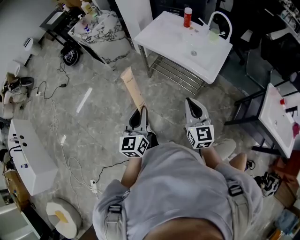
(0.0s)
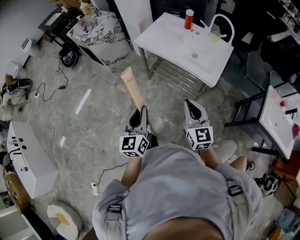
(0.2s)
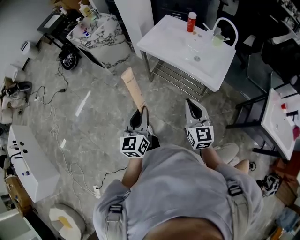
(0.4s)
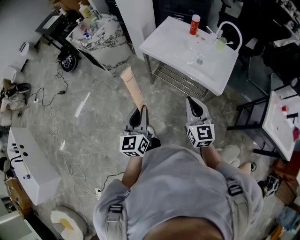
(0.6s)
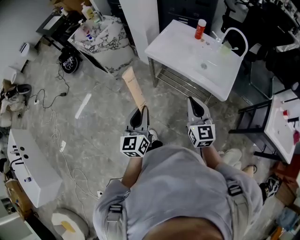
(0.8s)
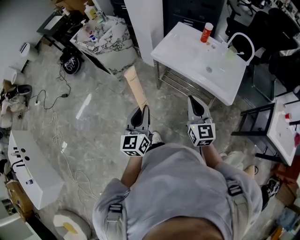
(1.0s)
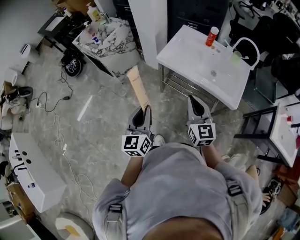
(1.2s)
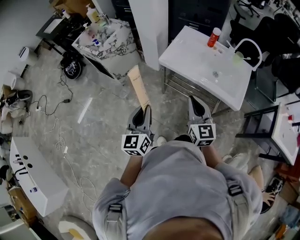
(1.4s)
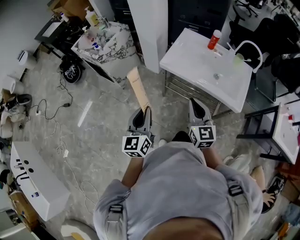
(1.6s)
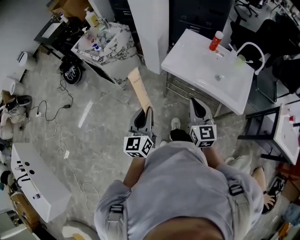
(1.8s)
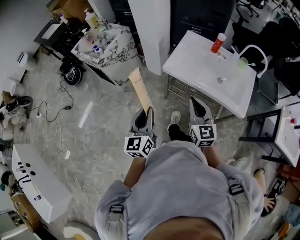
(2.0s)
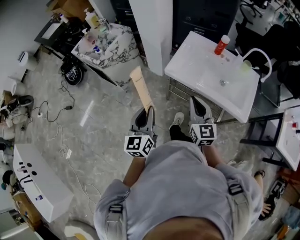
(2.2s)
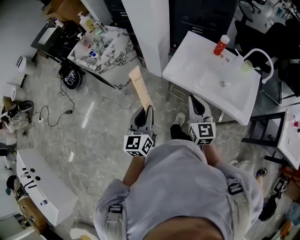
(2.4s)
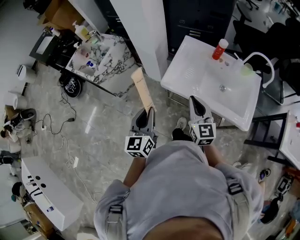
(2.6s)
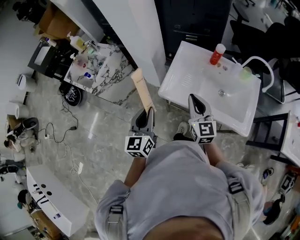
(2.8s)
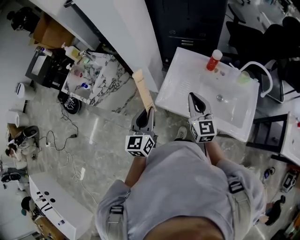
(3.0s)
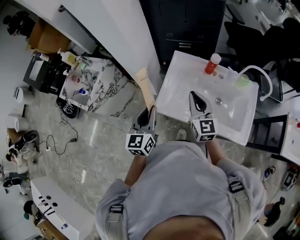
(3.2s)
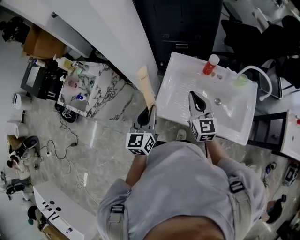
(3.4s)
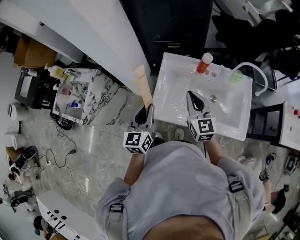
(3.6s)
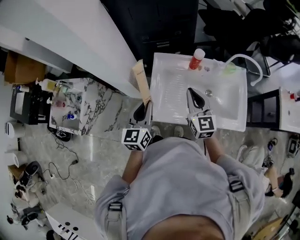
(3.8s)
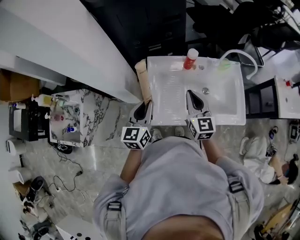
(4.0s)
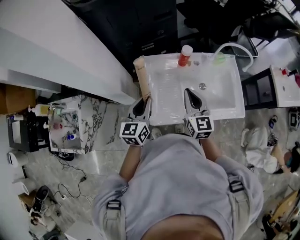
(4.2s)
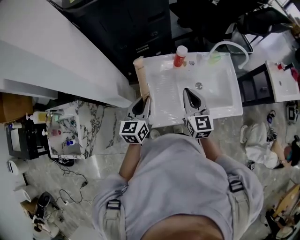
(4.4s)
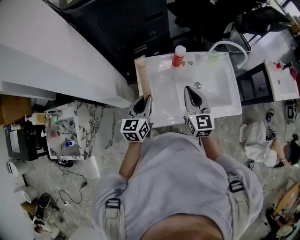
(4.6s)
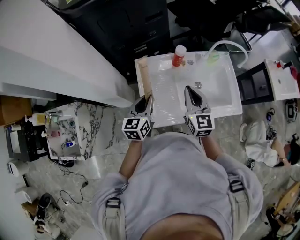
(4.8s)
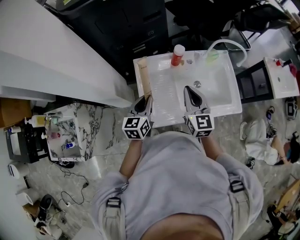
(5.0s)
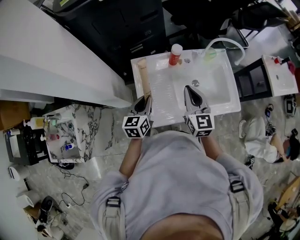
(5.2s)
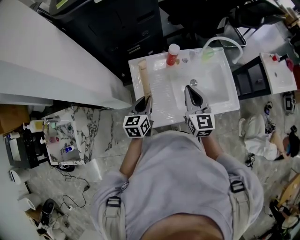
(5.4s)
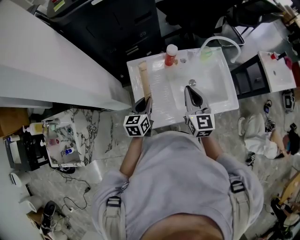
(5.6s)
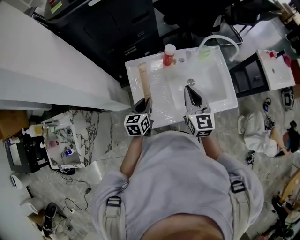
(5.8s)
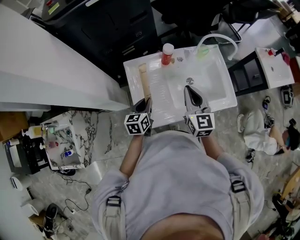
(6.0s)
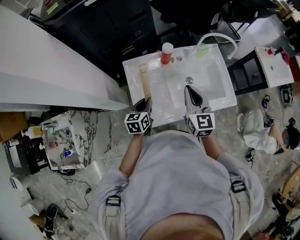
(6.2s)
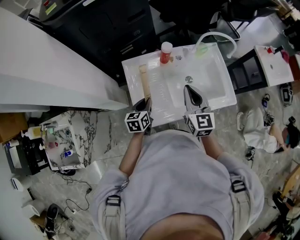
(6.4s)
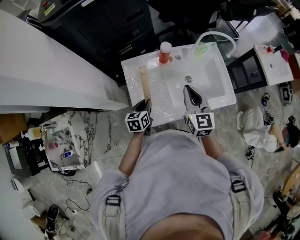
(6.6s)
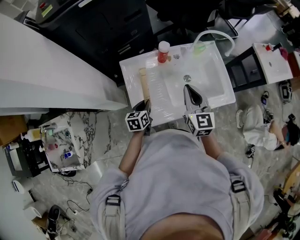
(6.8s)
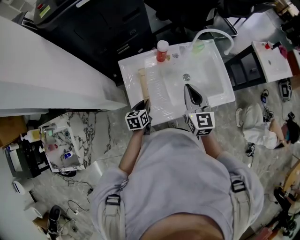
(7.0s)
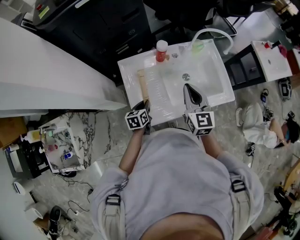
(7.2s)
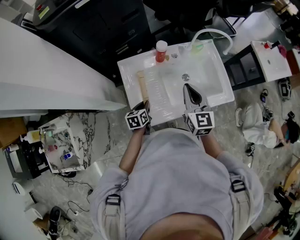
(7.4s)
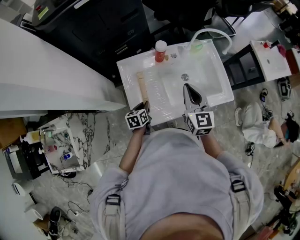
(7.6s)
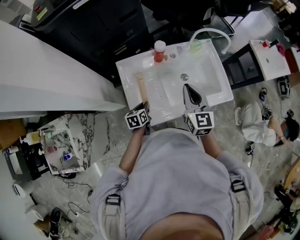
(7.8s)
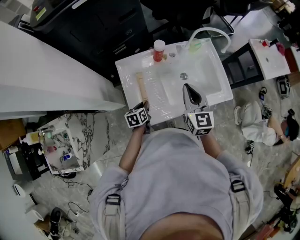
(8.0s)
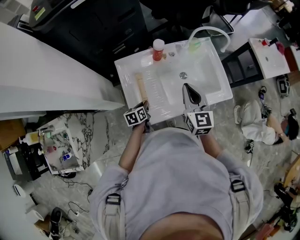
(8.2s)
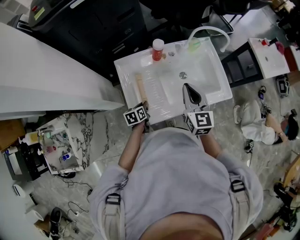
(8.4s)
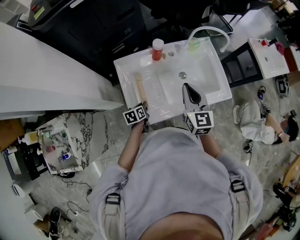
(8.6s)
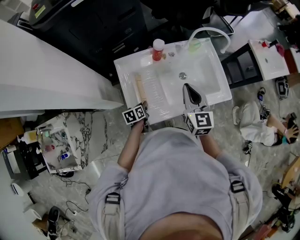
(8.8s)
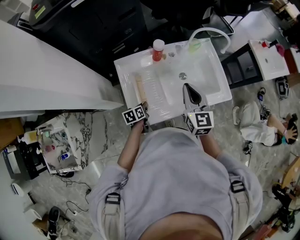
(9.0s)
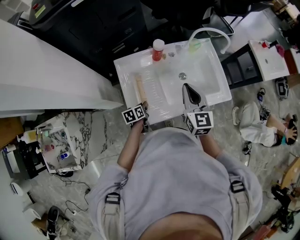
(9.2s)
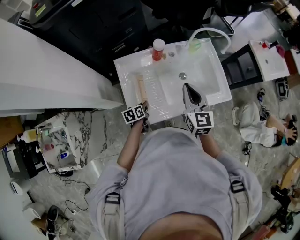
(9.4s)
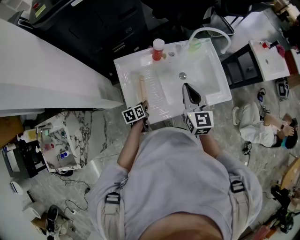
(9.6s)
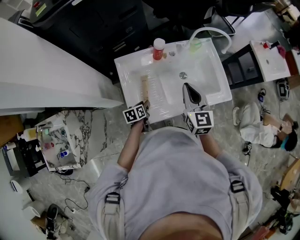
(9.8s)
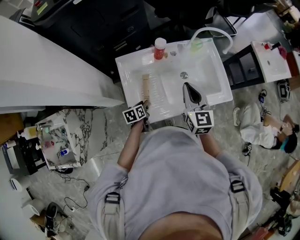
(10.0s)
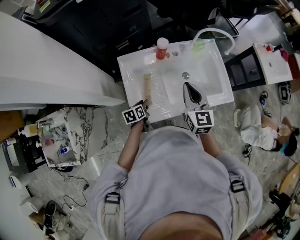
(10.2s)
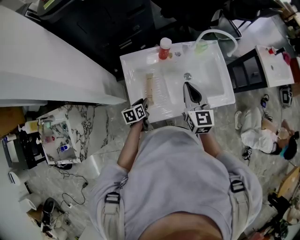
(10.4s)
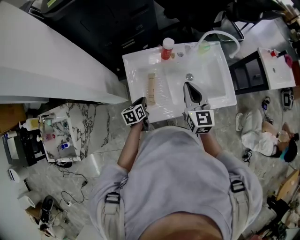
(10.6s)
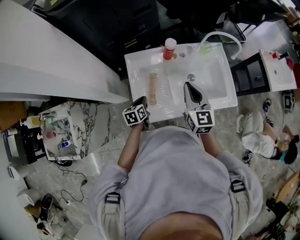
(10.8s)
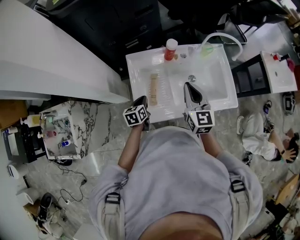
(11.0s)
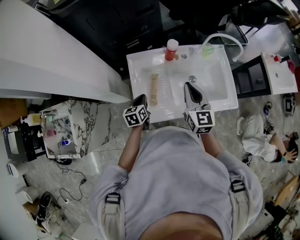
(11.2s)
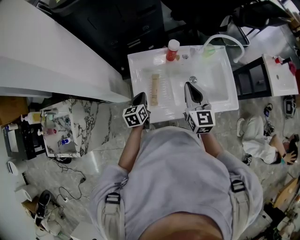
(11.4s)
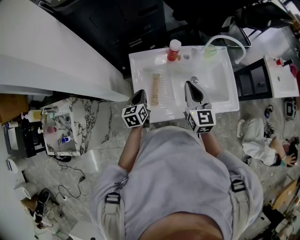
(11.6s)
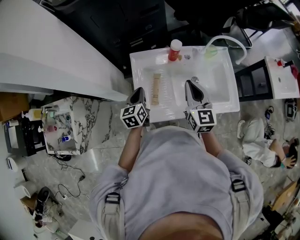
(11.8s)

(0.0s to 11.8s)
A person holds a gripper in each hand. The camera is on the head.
0.0s - 1.4s: The grippers both shift forward and to the left by some 30 cm.
1.4s - 3.0s: The grippers both shift forward by roughly 35 cm.
3.0s - 4.4s: The right gripper changes place by some 10 cm, and changes its angle by roughly 30 degrees. Meanwhile the left gripper ends up approximately 20 cm from where it was, and turns by about 30 degrees.
4.4s - 6.0s: The left gripper is displaced downward by roughly 10 cm.
6.0s - 7.4s: The left gripper travels downward by approximately 10 cm.
7.4s - 8.8s: The left gripper is displaced downward by about 5 cm.
8.8s - 10.4s: There are only small adjustments of the grippers.
10.4s - 11.8s: The left gripper shifts about 15 cm upward, turns by approximately 30 degrees, and closes its fingers.

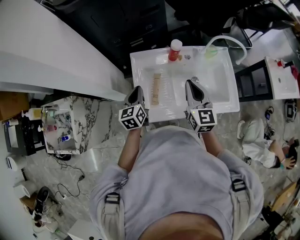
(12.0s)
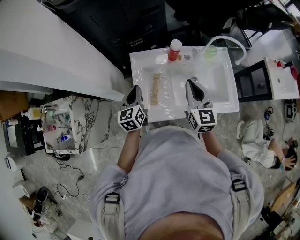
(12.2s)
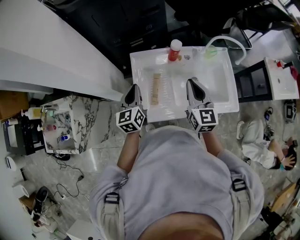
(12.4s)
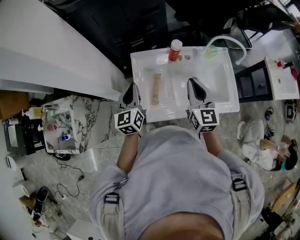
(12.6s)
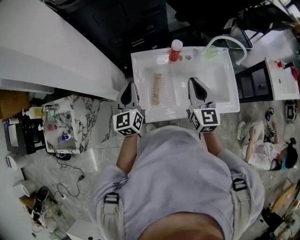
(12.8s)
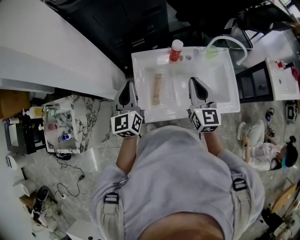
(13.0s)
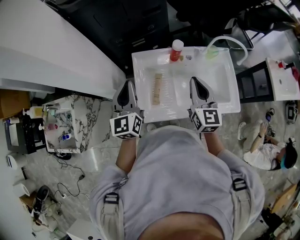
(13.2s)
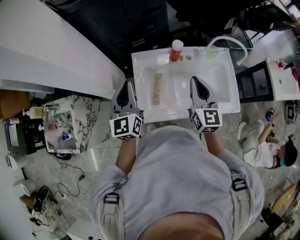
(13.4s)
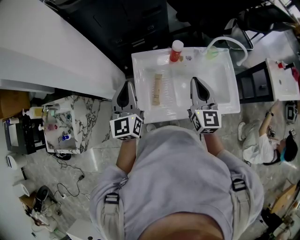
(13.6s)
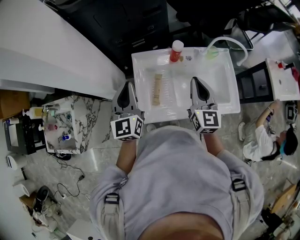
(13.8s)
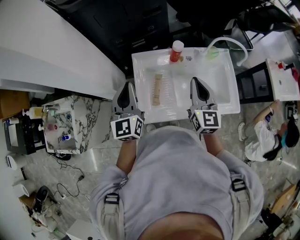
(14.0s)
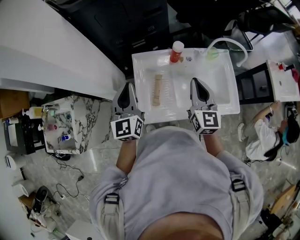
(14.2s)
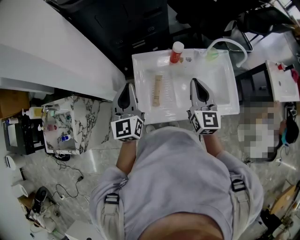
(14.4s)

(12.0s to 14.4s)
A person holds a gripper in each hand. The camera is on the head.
12.0s - 13.2s: The left gripper travels upward by approximately 15 cm, and changes its angle by roughly 20 degrees.
13.2s - 14.4s: Neither gripper changes place.

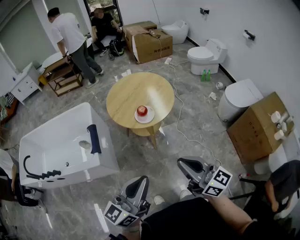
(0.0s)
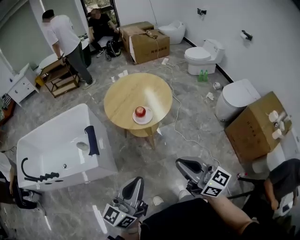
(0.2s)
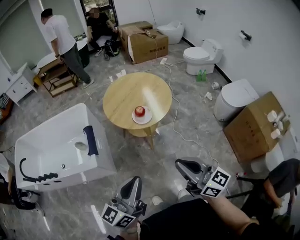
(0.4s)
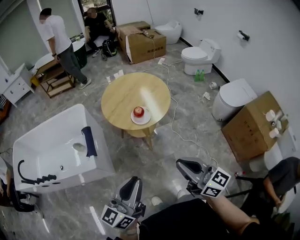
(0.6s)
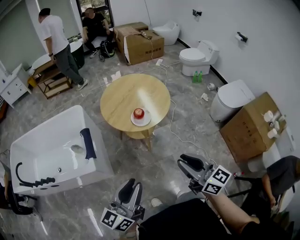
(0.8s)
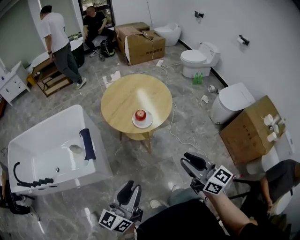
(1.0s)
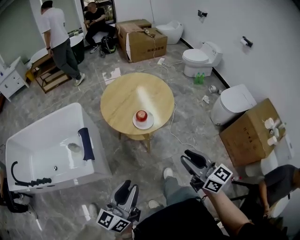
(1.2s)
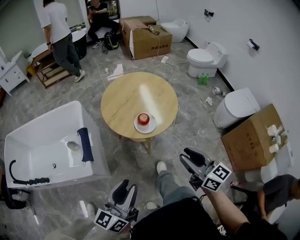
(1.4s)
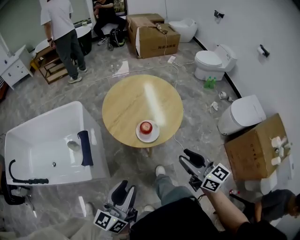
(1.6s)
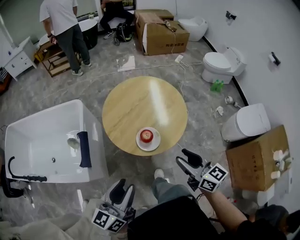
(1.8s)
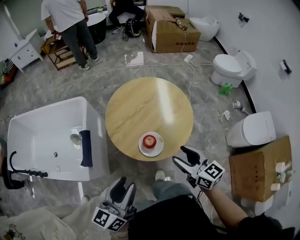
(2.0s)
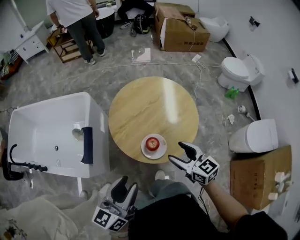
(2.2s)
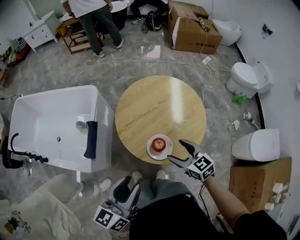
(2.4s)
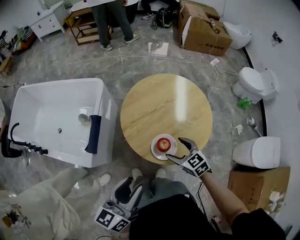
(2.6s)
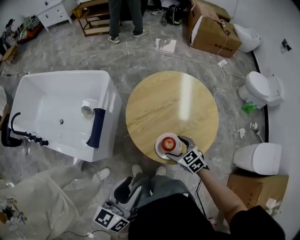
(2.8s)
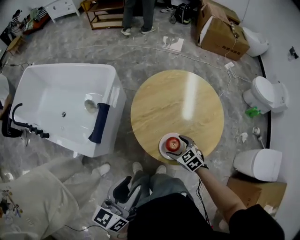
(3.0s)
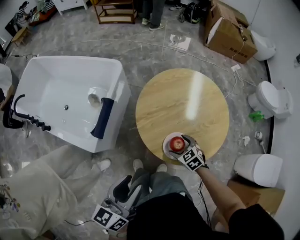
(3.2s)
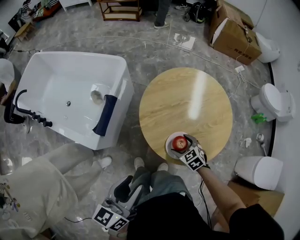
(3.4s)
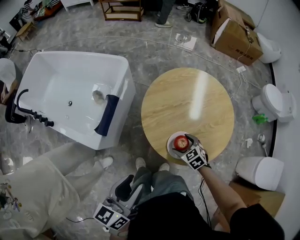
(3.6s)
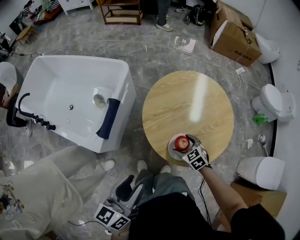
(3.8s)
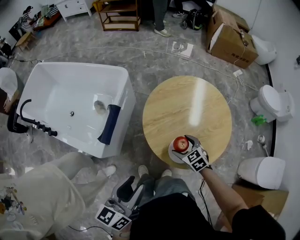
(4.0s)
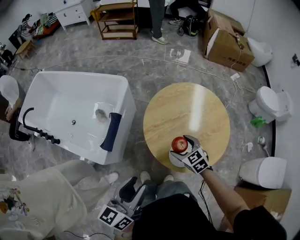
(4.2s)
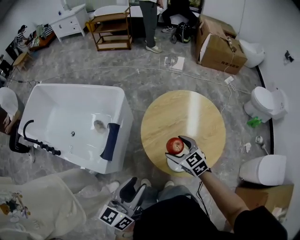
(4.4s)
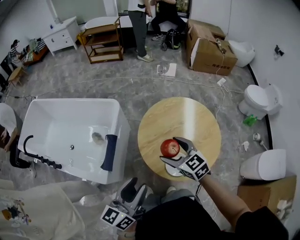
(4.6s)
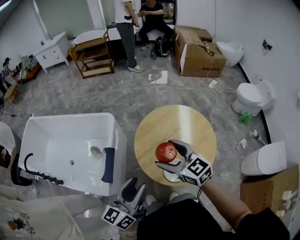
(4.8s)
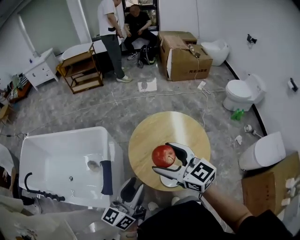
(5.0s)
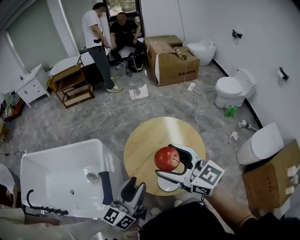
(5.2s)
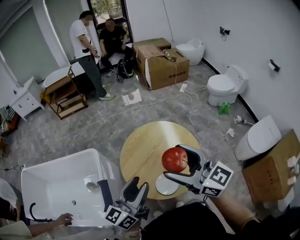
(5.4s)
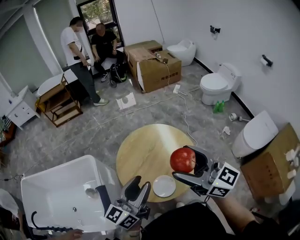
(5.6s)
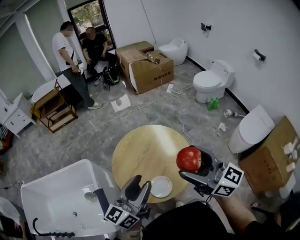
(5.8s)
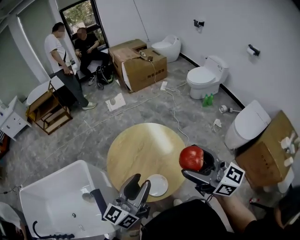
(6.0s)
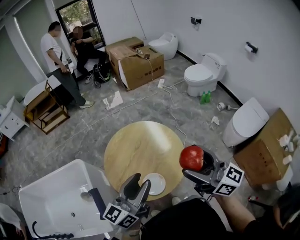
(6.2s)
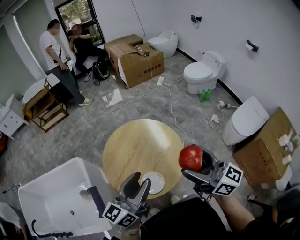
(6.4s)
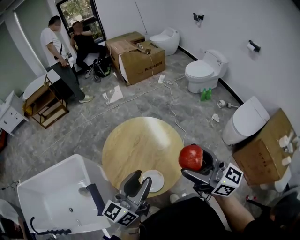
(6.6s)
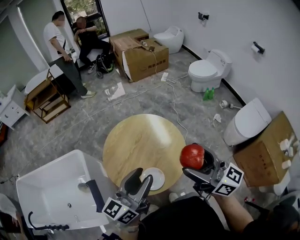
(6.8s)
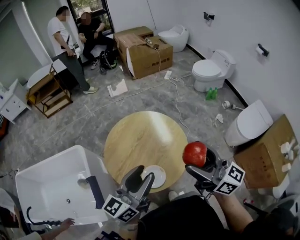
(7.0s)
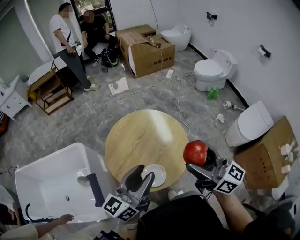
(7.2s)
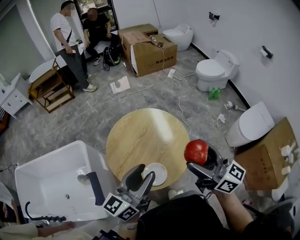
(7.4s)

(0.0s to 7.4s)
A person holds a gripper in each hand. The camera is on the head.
0.0s - 1.4s: The right gripper moves forward and downward, about 15 cm; the left gripper goes approximately 15 cm forward, to the left and downward, and opens up.
1.4s - 3.0s: The right gripper changes place by about 40 cm, angles its fingers downward, by approximately 50 degrees, and opens, while the left gripper ends up some 20 cm from where it was, and changes its angle by some 30 degrees.
3.0s - 4.4s: The right gripper shifts some 15 cm upward, forward and to the left. Meanwhile the left gripper shifts by approximately 5 cm.
4.4s - 6.0s: The right gripper travels upward by roughly 30 cm, and tips its fingers upward by approximately 50 degrees. The left gripper shifts by about 25 cm, and rotates about 40 degrees.
6.0s - 7.4s: The grippers stay close to where they were, moving slightly.

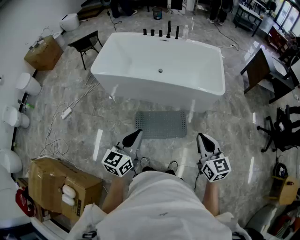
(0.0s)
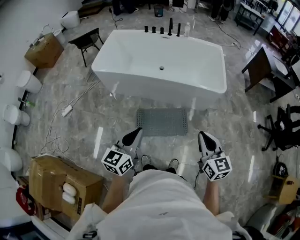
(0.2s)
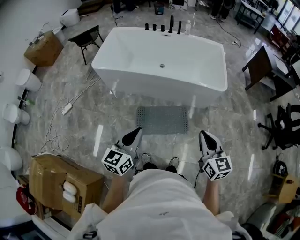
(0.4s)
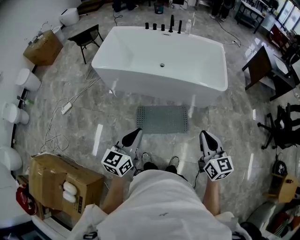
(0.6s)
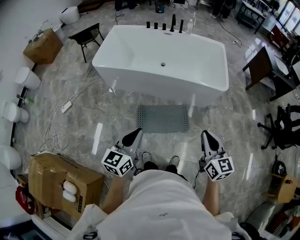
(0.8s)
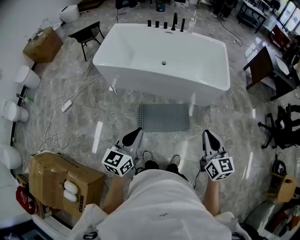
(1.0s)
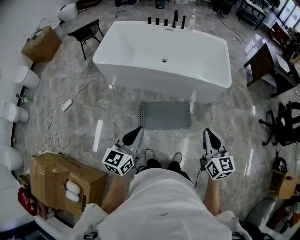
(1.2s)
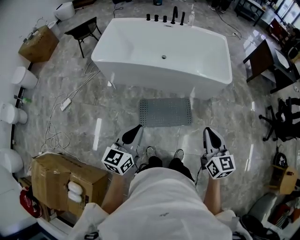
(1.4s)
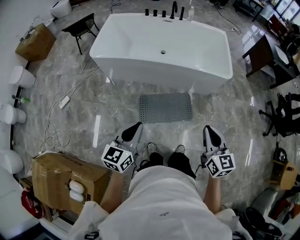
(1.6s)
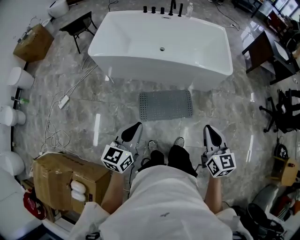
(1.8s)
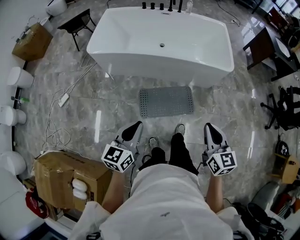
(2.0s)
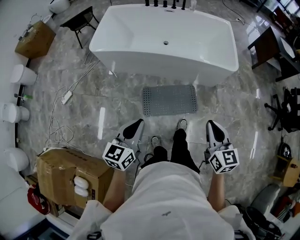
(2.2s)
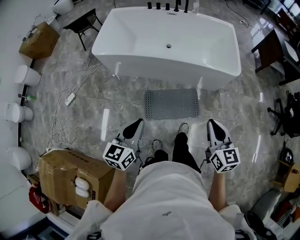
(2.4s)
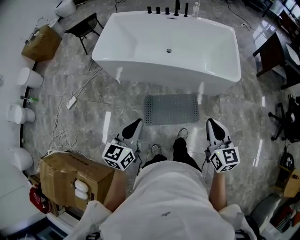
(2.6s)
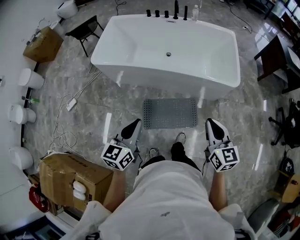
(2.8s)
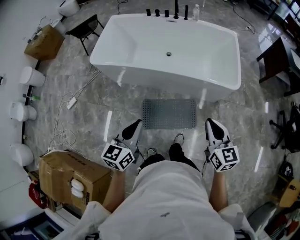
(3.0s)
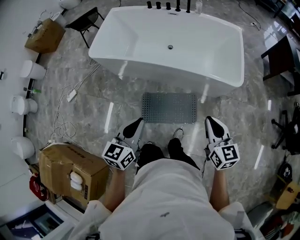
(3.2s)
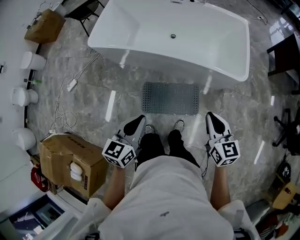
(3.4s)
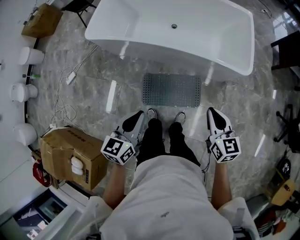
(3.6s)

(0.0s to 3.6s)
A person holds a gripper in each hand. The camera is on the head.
0.0s - 1.8s: Both grippers move to the left, approximately 10 cm.
1.8s - 3.6s: The right gripper heads forward, to the right and downward, covering some 25 cm; the left gripper goes some 20 cm forward and to the right.
